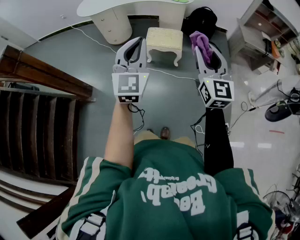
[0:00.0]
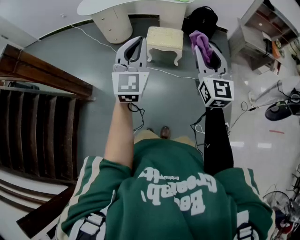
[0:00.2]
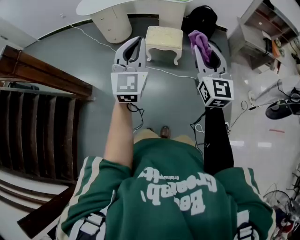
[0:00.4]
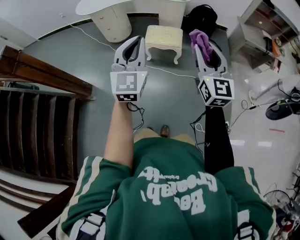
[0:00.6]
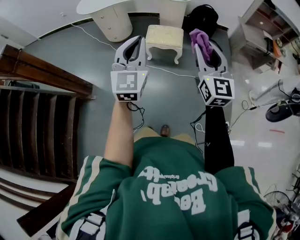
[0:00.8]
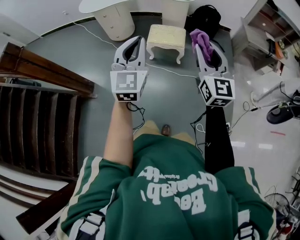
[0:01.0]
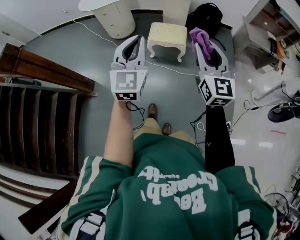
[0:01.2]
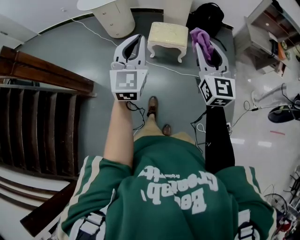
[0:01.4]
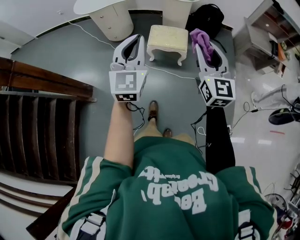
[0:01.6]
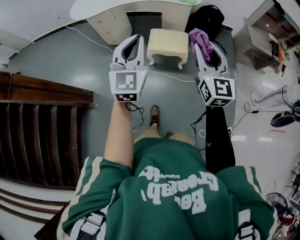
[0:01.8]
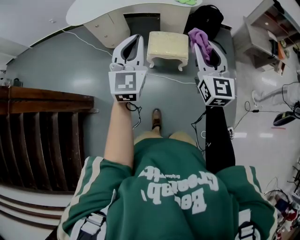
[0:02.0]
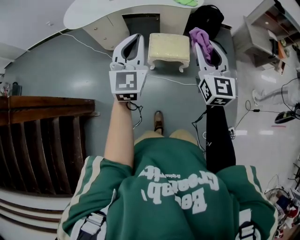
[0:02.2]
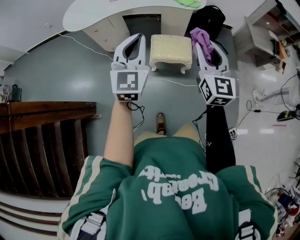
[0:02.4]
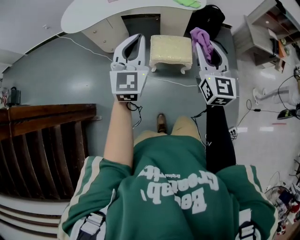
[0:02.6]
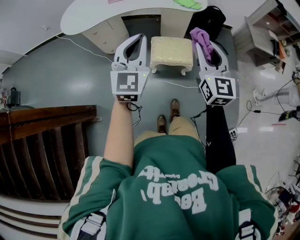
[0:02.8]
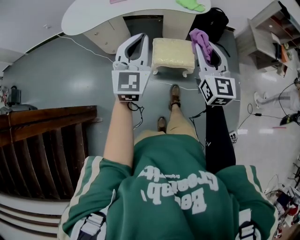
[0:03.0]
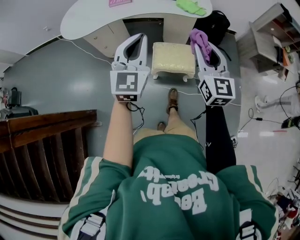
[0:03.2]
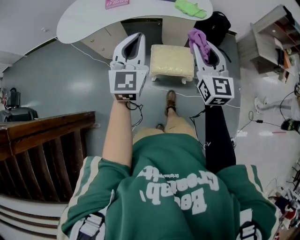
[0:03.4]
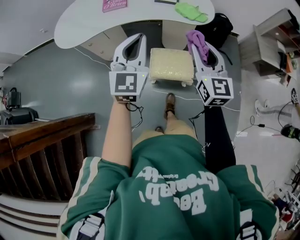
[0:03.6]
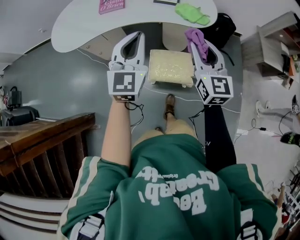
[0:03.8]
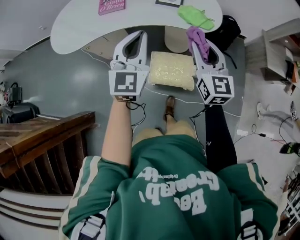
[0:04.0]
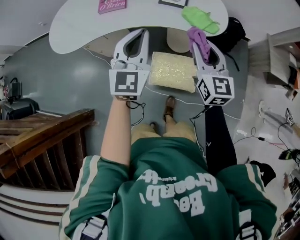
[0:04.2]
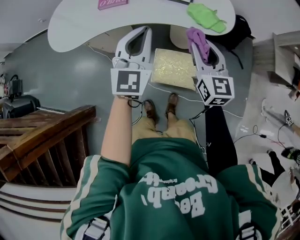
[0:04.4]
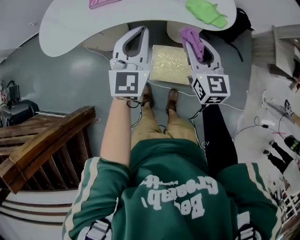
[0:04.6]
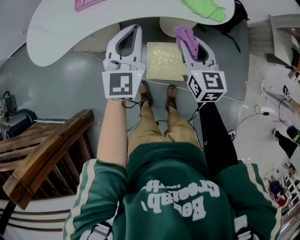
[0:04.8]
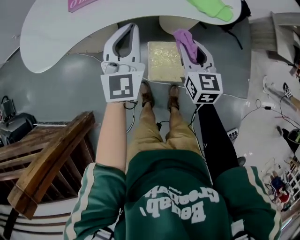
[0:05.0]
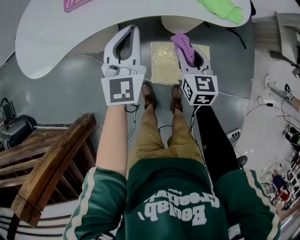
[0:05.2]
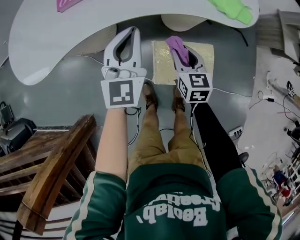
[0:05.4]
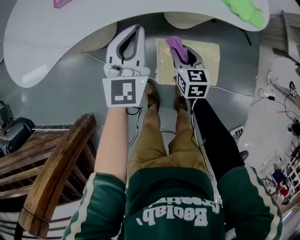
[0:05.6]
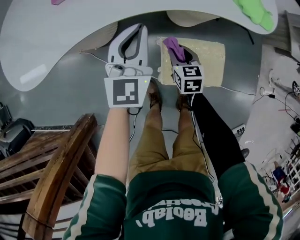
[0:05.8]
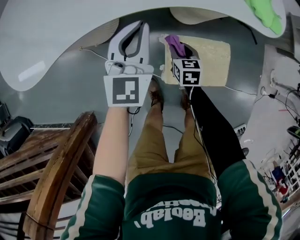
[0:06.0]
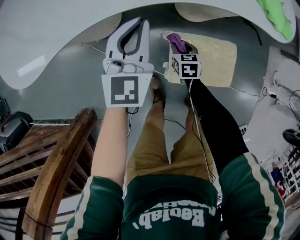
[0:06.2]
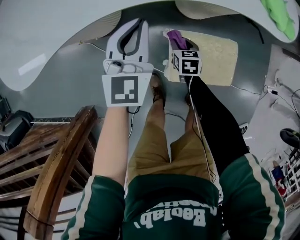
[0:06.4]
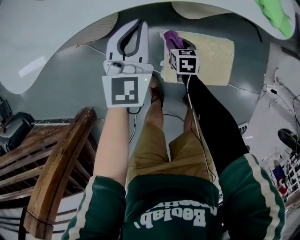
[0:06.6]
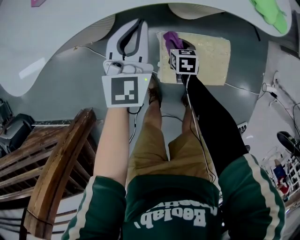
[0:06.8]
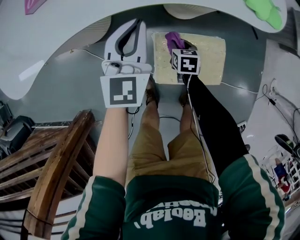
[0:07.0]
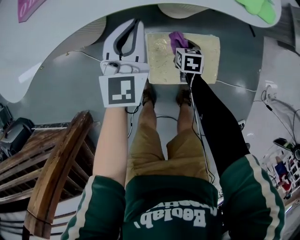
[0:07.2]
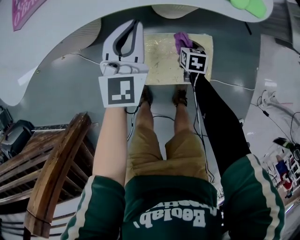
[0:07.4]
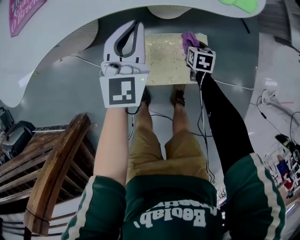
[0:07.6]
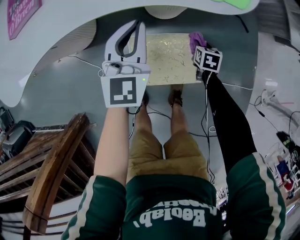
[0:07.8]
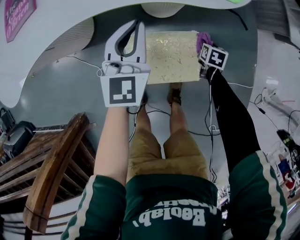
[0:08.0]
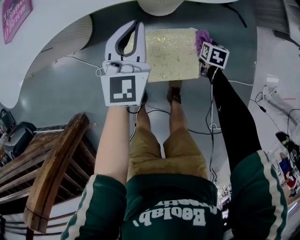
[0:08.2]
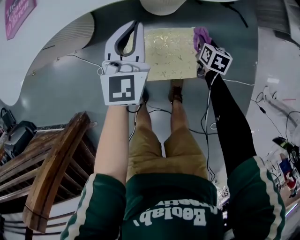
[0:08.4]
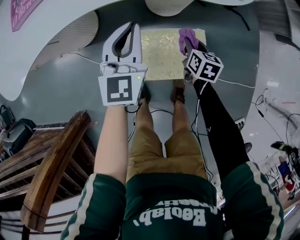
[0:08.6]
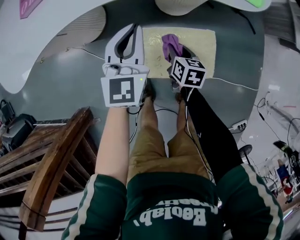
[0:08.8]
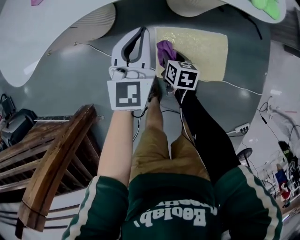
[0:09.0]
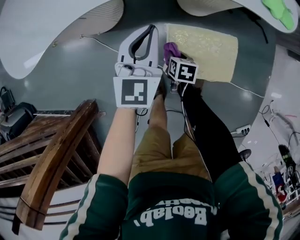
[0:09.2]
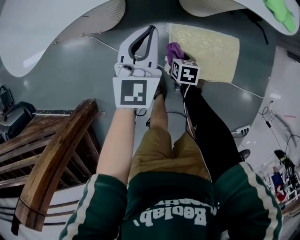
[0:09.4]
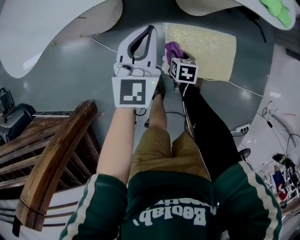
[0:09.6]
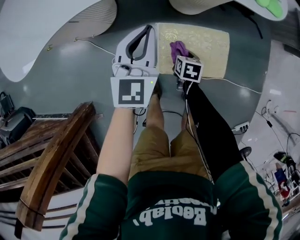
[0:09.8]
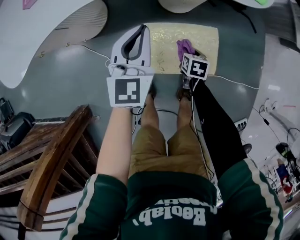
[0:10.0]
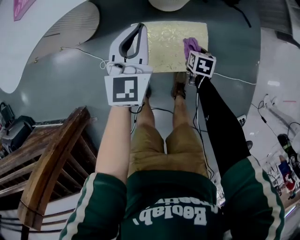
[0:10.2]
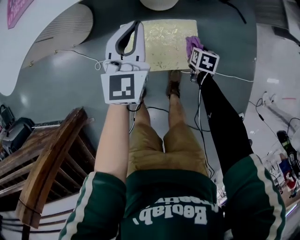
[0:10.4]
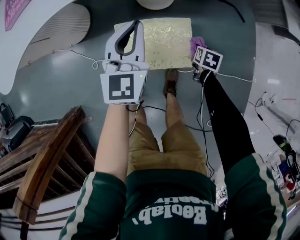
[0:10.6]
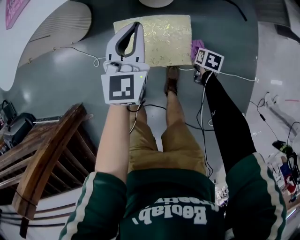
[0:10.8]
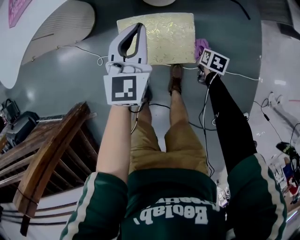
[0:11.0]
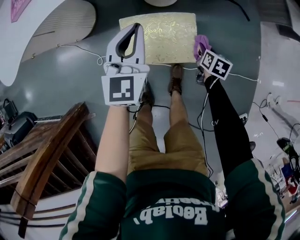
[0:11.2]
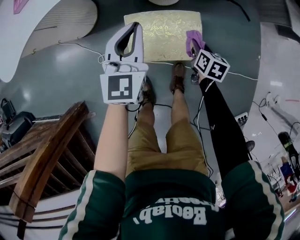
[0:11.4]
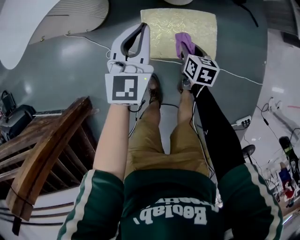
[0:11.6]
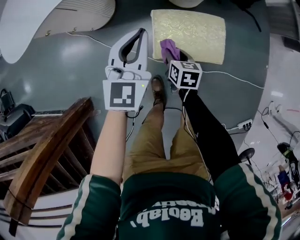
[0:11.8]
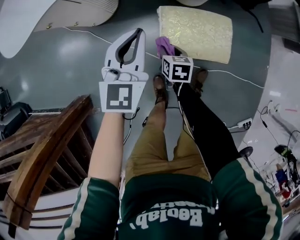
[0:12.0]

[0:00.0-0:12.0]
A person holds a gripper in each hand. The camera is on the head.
0:00.0 to 0:01.6: Both grippers move forward, some 10 cm.
0:01.6 to 0:03.0: The grippers both shift forward by approximately 20 cm.
0:03.0 to 0:04.4: Both grippers travel together forward, approximately 25 cm.
0:04.4 to 0:06.0: The right gripper shifts approximately 40 cm downward, and angles its fingers downward, by some 40 degrees. Meanwhile the left gripper shifts approximately 30 cm downward, to the left and forward.
0:06.0 to 0:07.6: The right gripper travels to the right by approximately 25 cm. Meanwhile the left gripper travels to the right by some 15 cm.
0:07.6 to 0:09.0: The right gripper goes some 25 cm to the left and backward, and turns by roughly 20 degrees, while the left gripper moves to the left and backward, some 10 cm.
0:09.0 to 0:10.4: The left gripper shifts roughly 15 cm to the right. The right gripper heads to the right, covering roughly 30 cm, and turns by some 20 degrees.
0:10.4 to 0:12.0: The left gripper moves to the left and backward, some 20 cm, while the right gripper is displaced to the left by approximately 30 cm, and rotates some 20 degrees.

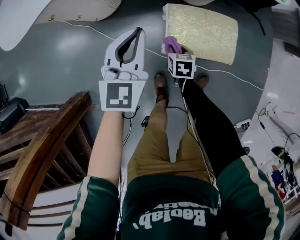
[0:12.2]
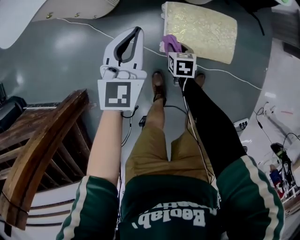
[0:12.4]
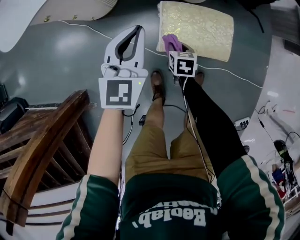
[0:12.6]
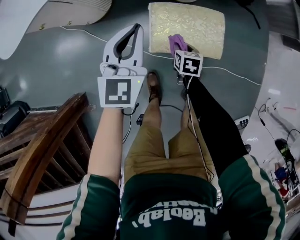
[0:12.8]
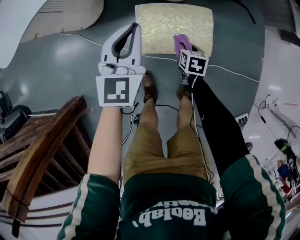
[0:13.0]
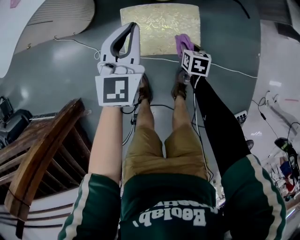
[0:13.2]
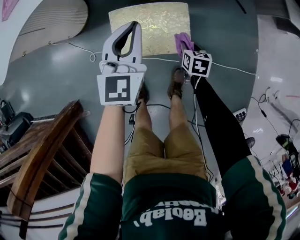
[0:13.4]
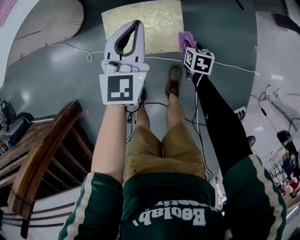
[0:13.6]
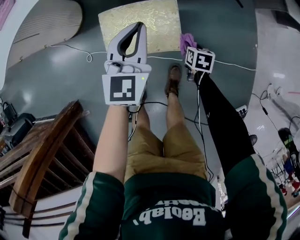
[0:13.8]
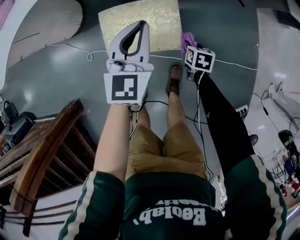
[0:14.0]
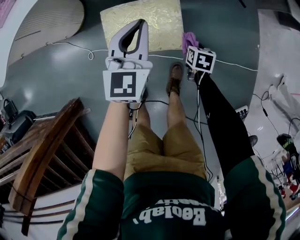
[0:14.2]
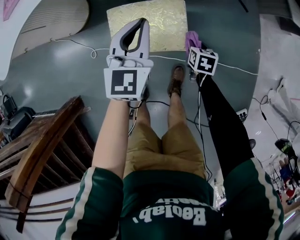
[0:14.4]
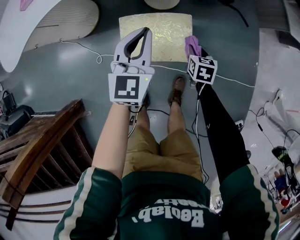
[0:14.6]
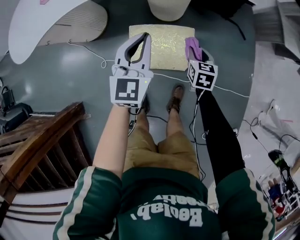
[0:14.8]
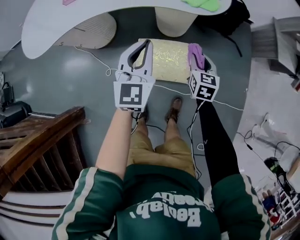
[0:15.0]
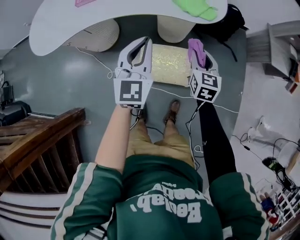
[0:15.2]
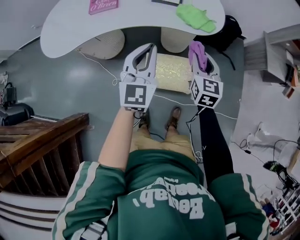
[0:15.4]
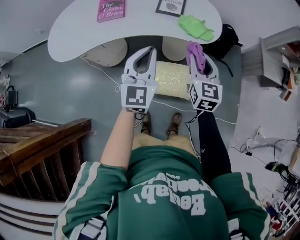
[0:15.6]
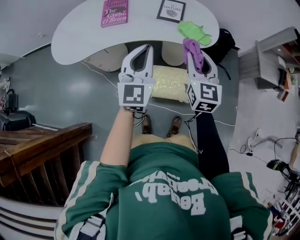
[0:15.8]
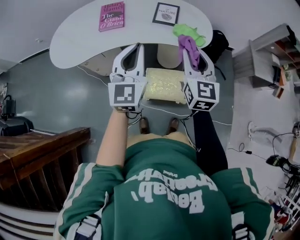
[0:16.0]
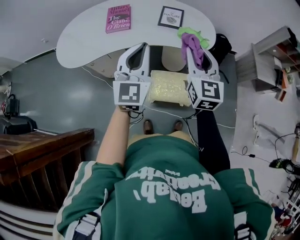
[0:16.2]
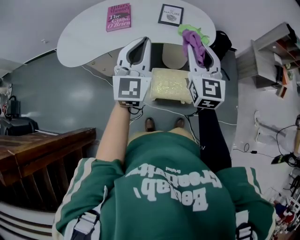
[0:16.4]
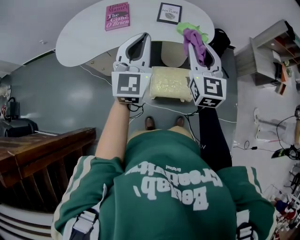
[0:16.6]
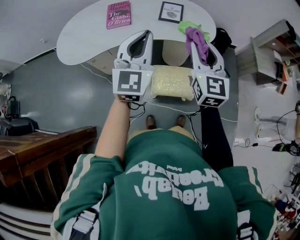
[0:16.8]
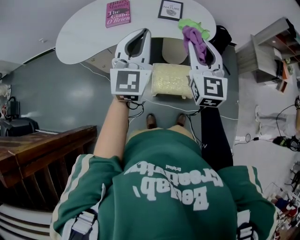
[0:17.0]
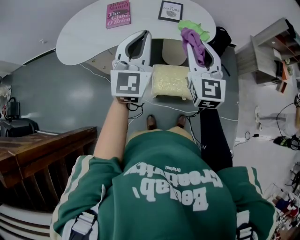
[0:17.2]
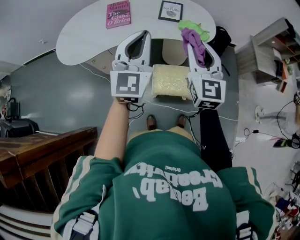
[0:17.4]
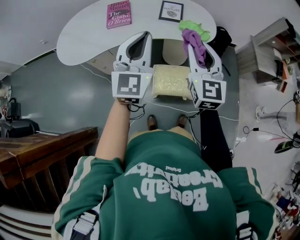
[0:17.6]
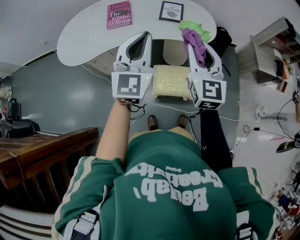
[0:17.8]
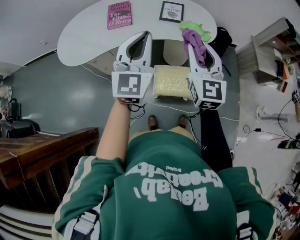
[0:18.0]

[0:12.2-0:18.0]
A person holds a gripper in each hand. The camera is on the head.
0:12.2 to 0:13.6: Both grippers move to the right, about 30 cm.
0:13.6 to 0:15.0: The right gripper shifts about 25 cm upward, and swivels approximately 30 degrees. Meanwhile the left gripper goes approximately 15 cm upward and to the left.
0:15.0 to 0:16.6: The two grippers go roughly 35 cm upward. The right gripper angles its fingers upward, by roughly 30 degrees.
0:16.6 to 0:18.0: The grippers make only small movements.

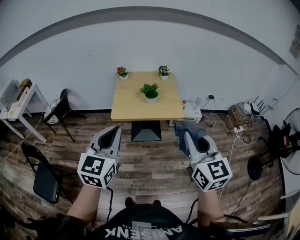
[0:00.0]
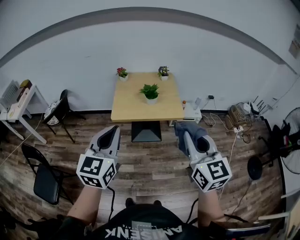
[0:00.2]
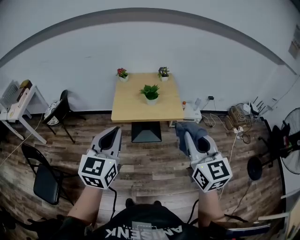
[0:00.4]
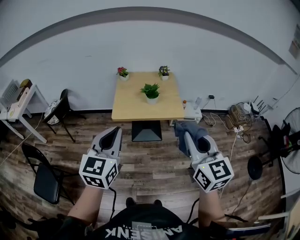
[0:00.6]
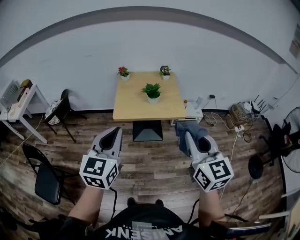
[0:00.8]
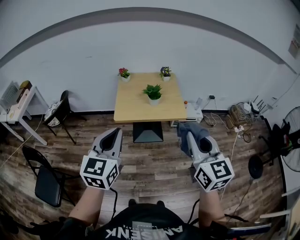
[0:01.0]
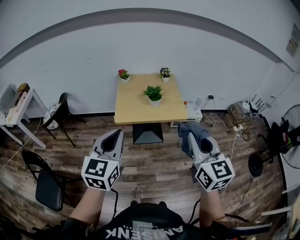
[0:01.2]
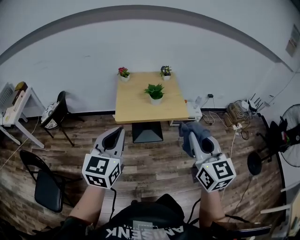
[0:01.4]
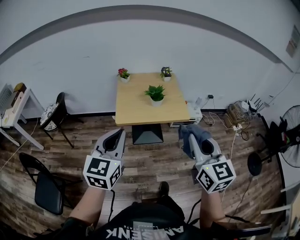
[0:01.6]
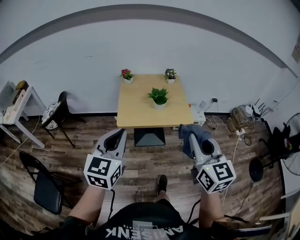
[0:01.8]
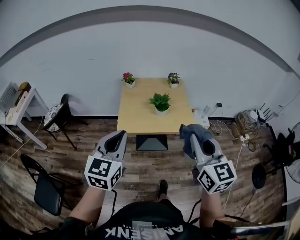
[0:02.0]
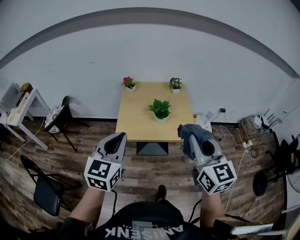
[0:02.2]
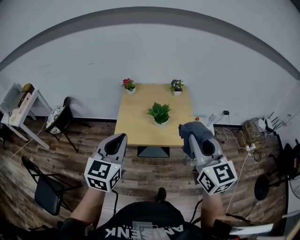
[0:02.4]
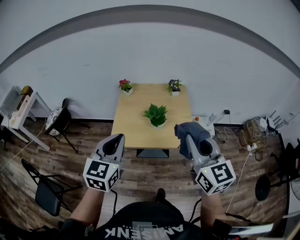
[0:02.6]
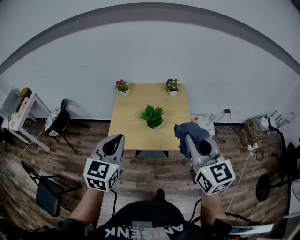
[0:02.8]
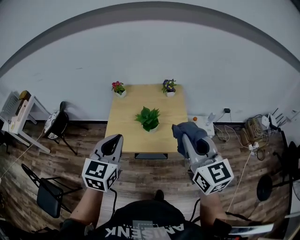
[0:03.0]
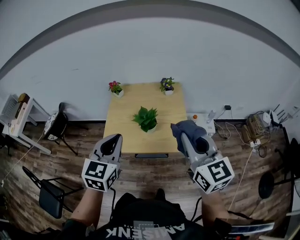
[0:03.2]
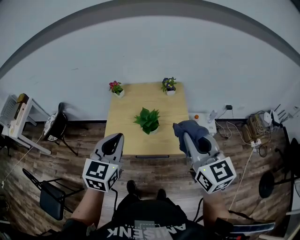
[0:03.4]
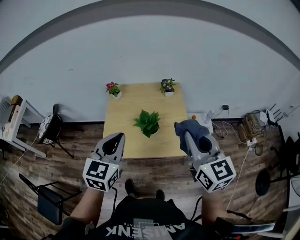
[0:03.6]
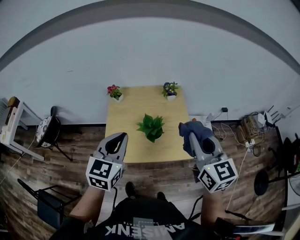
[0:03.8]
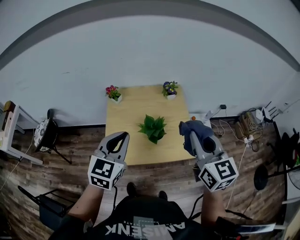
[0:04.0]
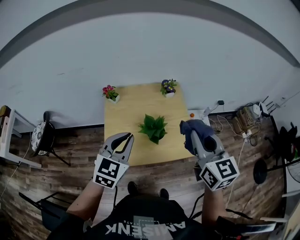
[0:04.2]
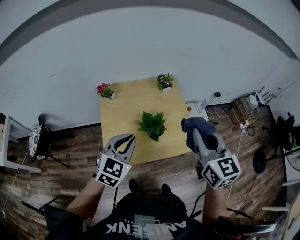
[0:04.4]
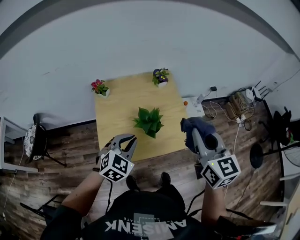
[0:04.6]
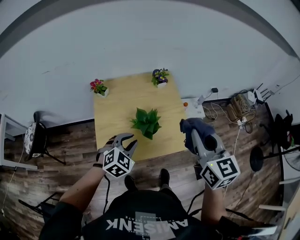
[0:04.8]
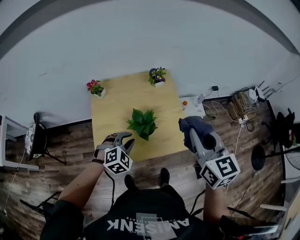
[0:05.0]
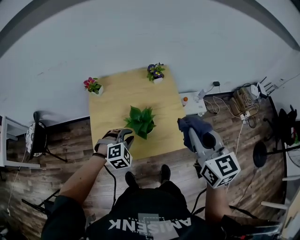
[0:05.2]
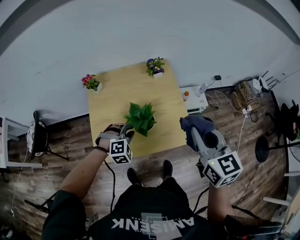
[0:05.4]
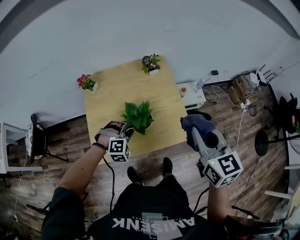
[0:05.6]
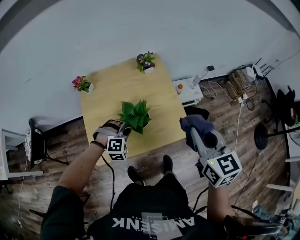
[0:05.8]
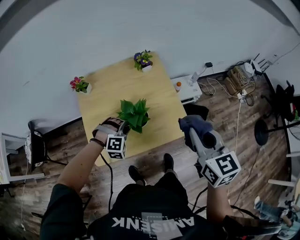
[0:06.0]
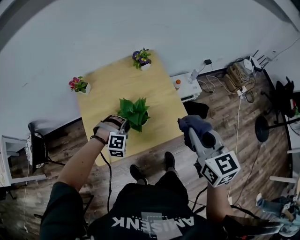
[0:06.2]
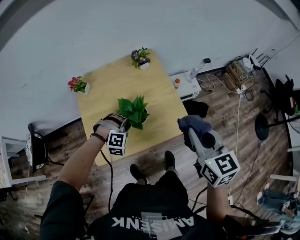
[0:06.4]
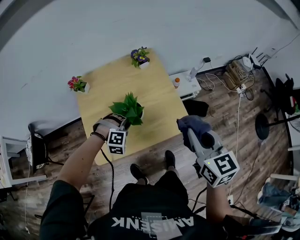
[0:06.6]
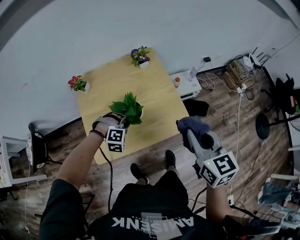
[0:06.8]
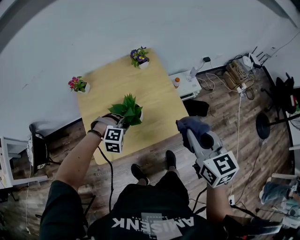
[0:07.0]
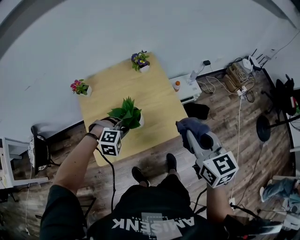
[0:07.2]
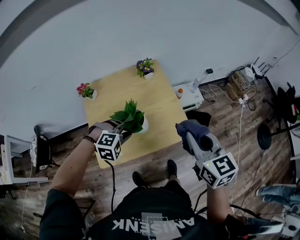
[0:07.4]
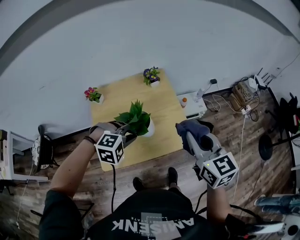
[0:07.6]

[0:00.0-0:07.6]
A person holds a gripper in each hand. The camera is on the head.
0:00.0 to 0:01.6: The two grippers go some 5 cm to the left.
0:01.6 to 0:03.0: Both grippers move forward and to the right, roughly 30 cm.
0:03.0 to 0:04.6: The right gripper is displaced forward by some 10 cm, and rotates some 20 degrees. The left gripper goes roughly 20 cm downward and forward, and turns by some 40 degrees.
0:04.6 to 0:06.0: The left gripper travels downward and forward by about 20 cm, and rotates around the line of its fingers by about 50 degrees, clockwise from behind; the right gripper is displaced downward and to the right by approximately 10 cm.
0:06.0 to 0:07.6: The left gripper shifts roughly 15 cm upward.
